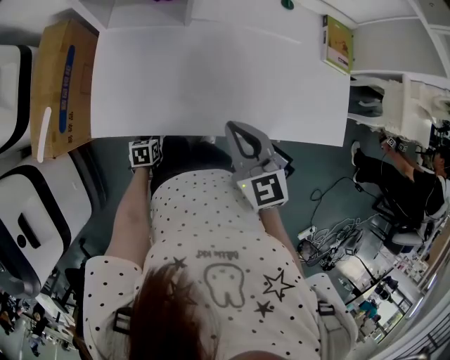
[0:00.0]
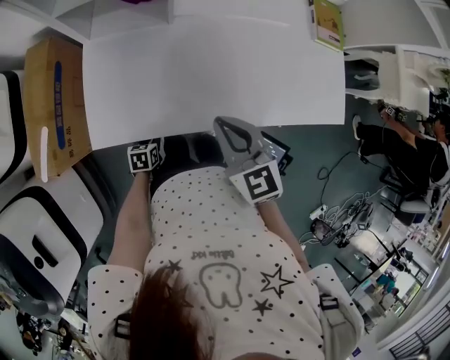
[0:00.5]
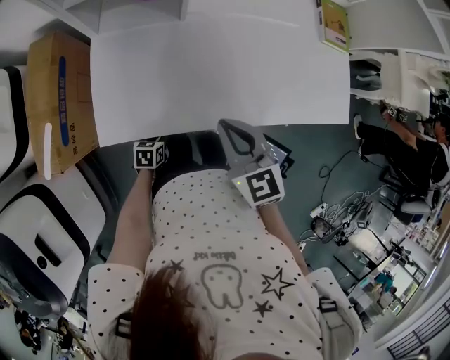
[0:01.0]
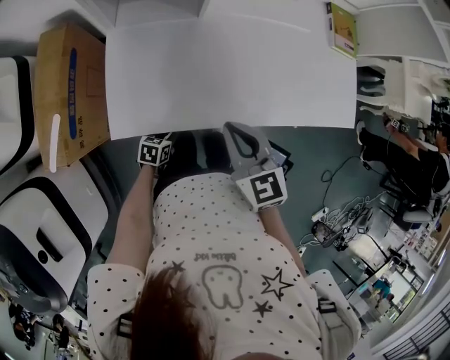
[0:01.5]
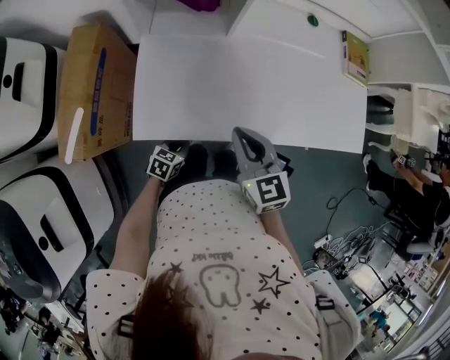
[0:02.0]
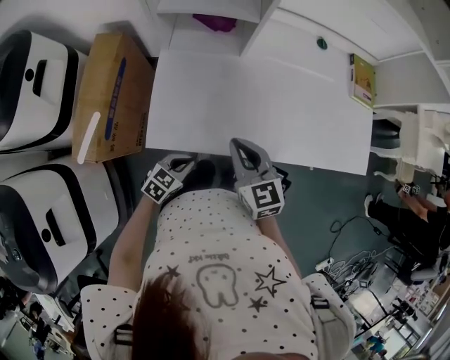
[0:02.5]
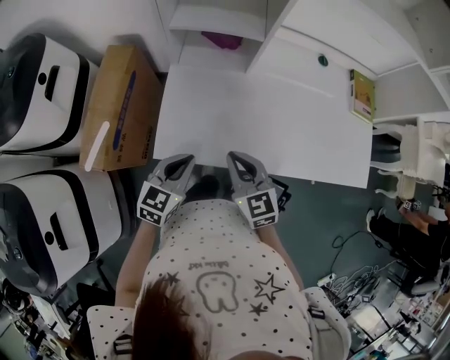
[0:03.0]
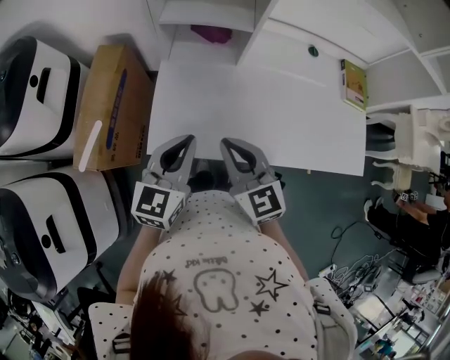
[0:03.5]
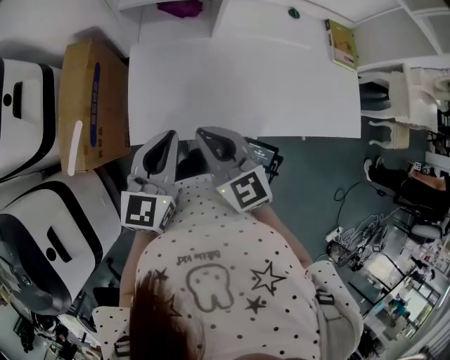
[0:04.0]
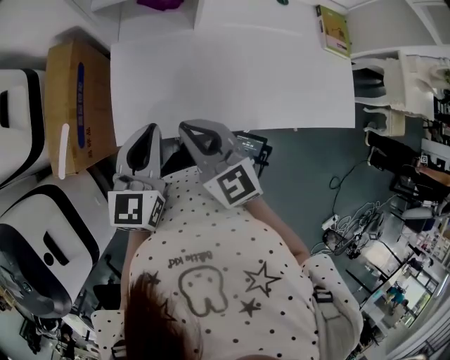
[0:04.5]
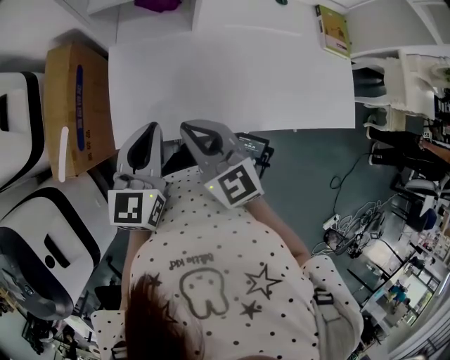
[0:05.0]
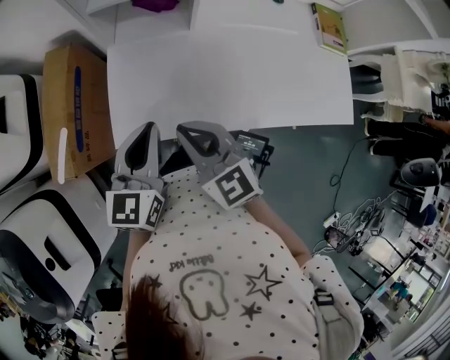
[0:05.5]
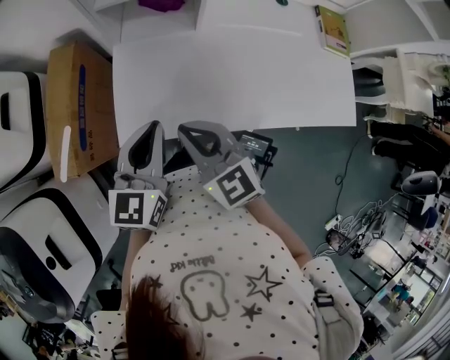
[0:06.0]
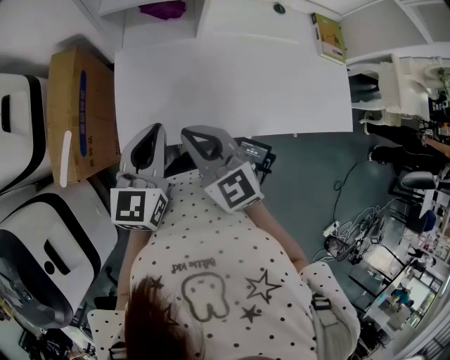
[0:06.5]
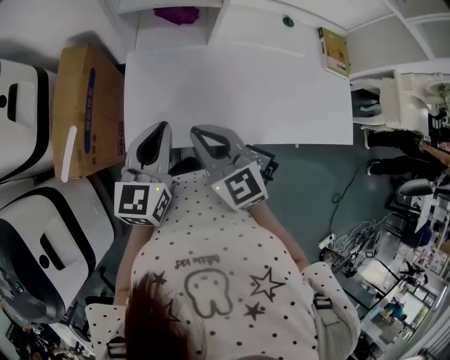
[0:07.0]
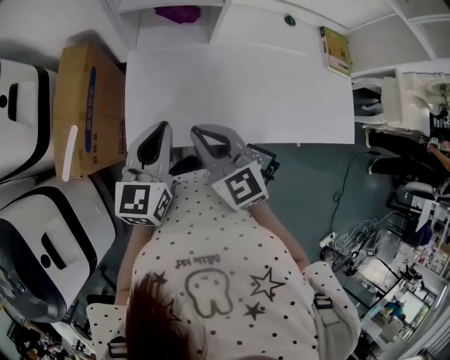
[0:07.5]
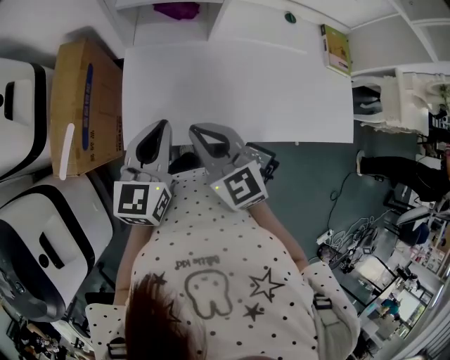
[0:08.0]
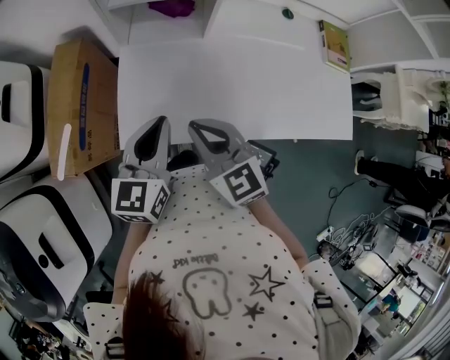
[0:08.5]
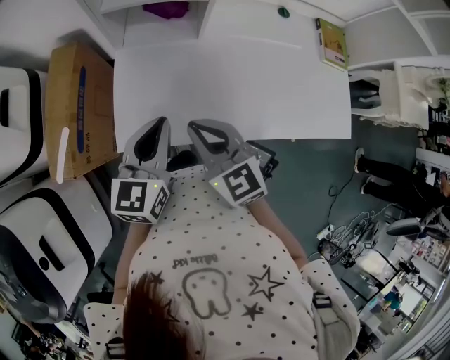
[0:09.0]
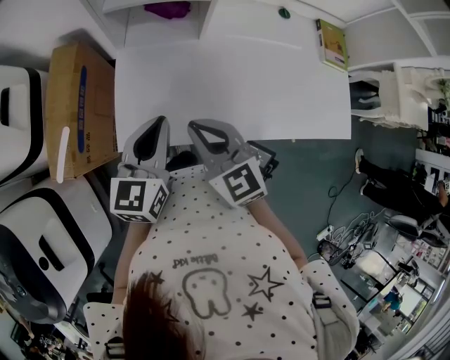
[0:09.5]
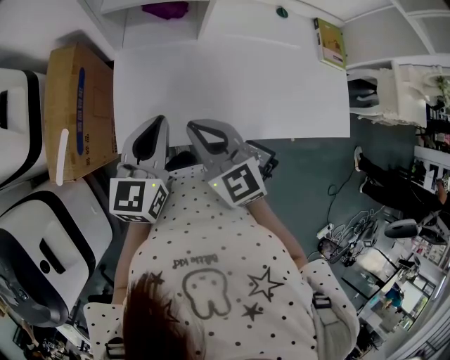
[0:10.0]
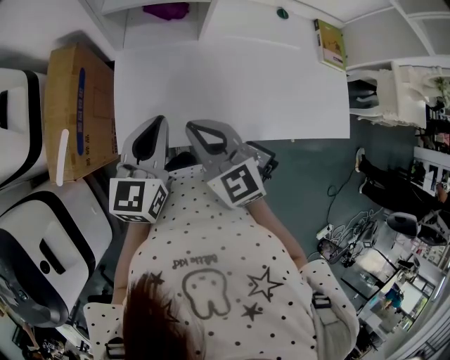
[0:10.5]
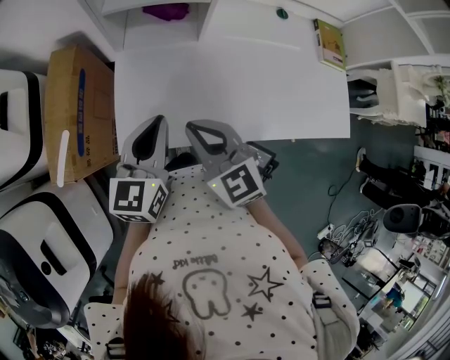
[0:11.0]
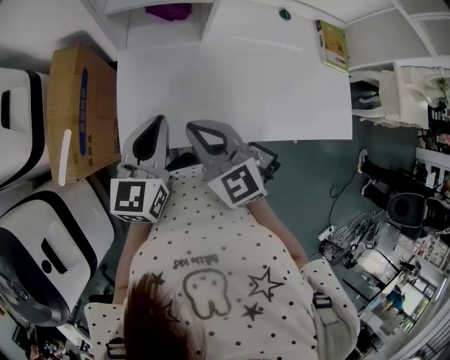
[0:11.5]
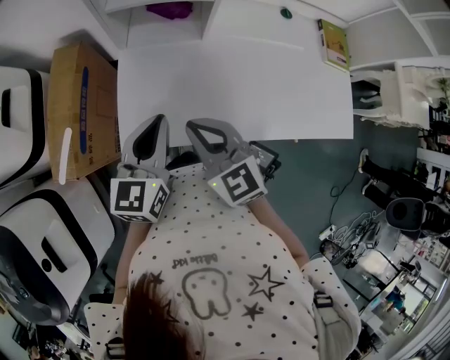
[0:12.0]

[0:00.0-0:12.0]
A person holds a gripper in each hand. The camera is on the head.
0.0 to 2.0 s: The left gripper heads upward, covering roughly 5 cm, and rotates about 30 degrees; the right gripper travels to the left by roughly 10 cm.
2.0 to 4.0 s: The left gripper heads upward, covering roughly 35 cm, and tilts its fingers about 30 degrees upward, while the right gripper is displaced to the left and upward by roughly 10 cm.
4.0 to 10.0 s: There are only small adjustments of the grippers.
10.0 to 12.0 s: Both grippers stay about where they are.

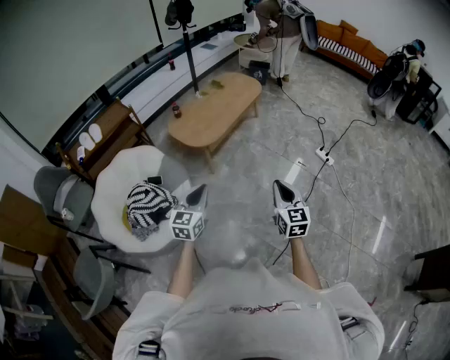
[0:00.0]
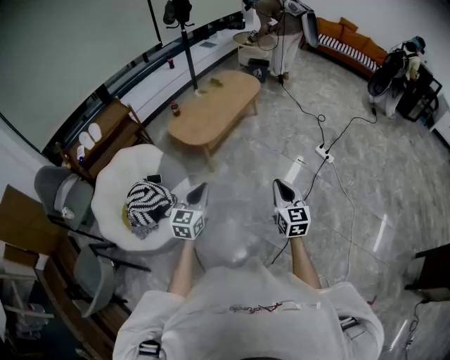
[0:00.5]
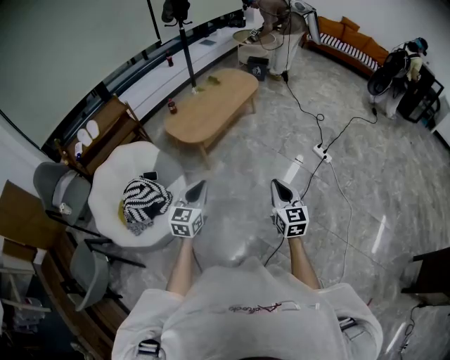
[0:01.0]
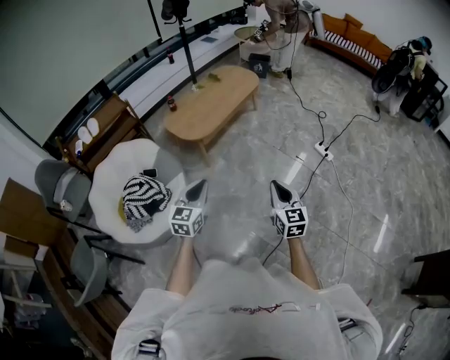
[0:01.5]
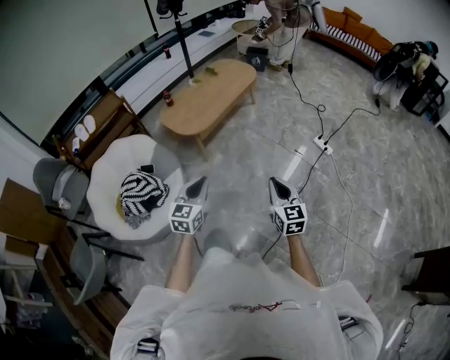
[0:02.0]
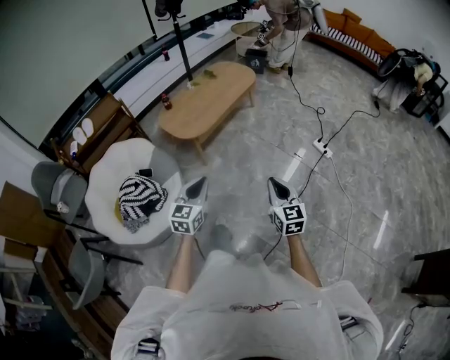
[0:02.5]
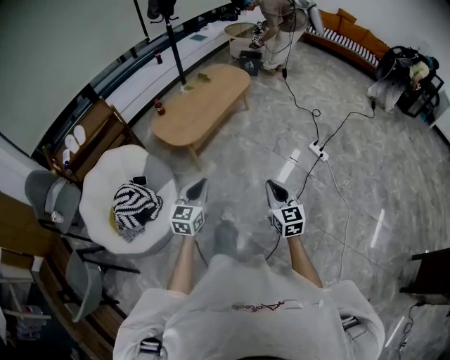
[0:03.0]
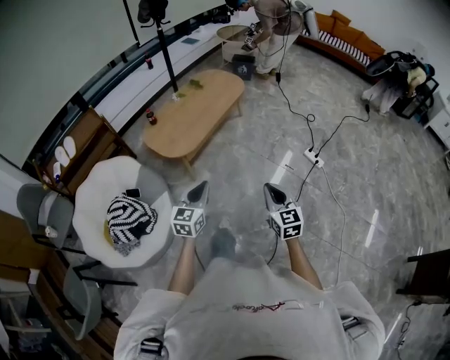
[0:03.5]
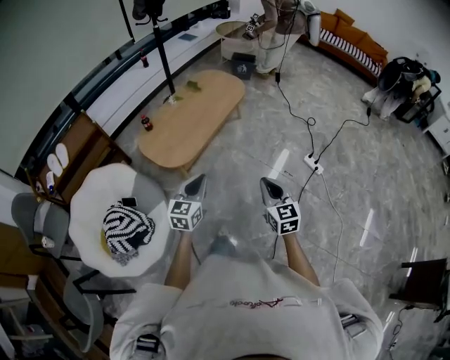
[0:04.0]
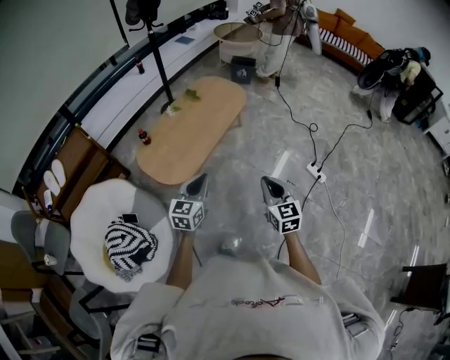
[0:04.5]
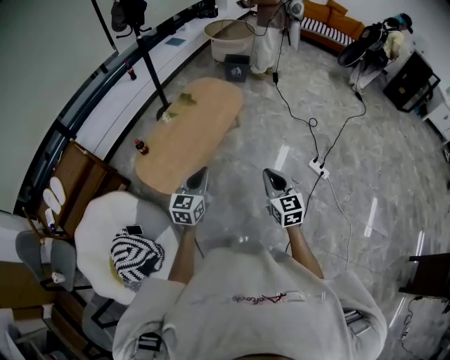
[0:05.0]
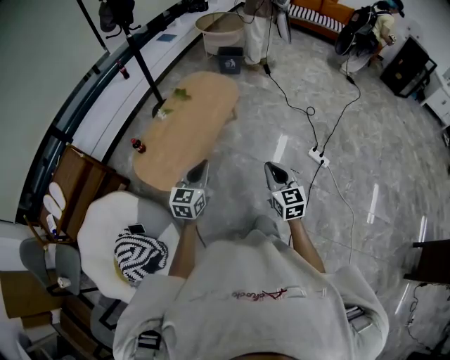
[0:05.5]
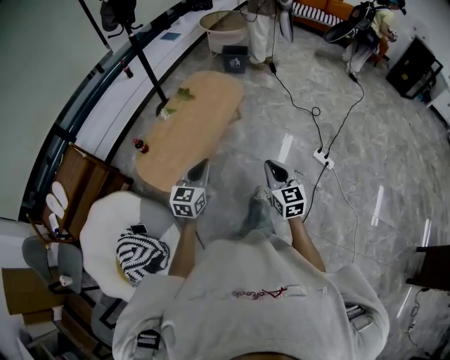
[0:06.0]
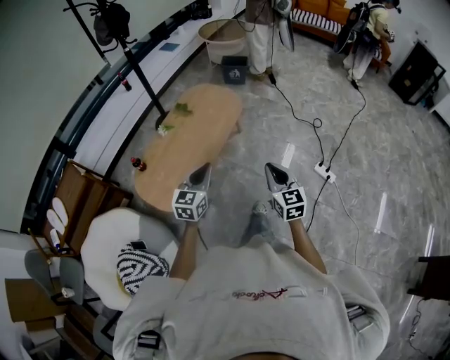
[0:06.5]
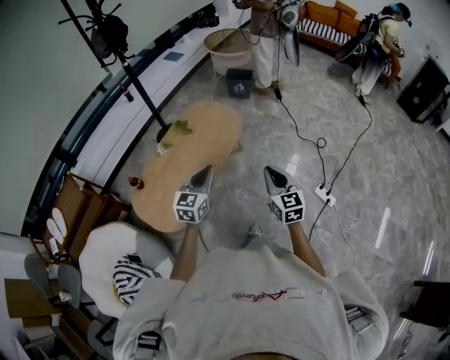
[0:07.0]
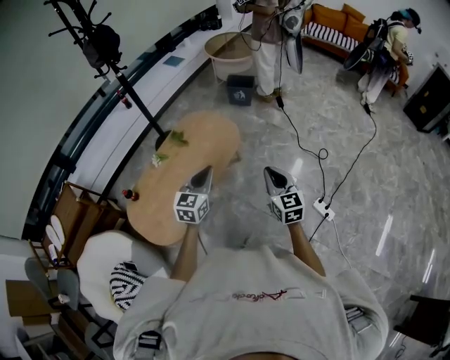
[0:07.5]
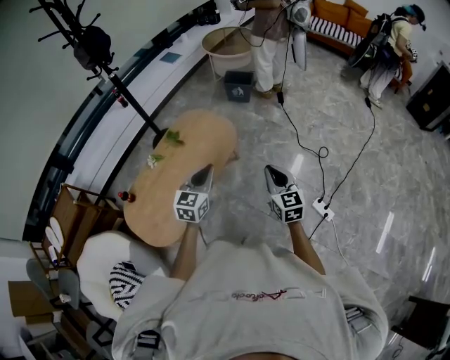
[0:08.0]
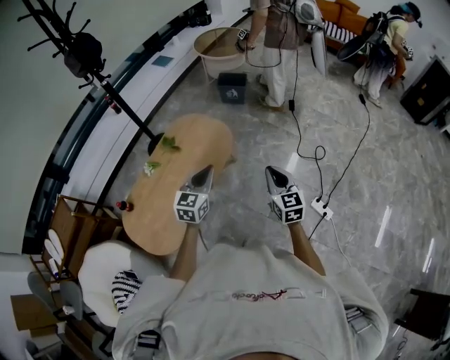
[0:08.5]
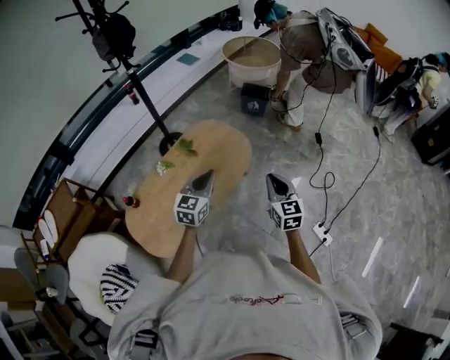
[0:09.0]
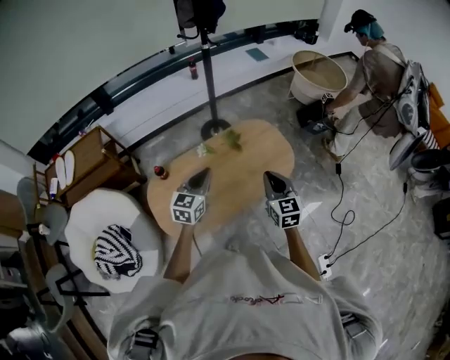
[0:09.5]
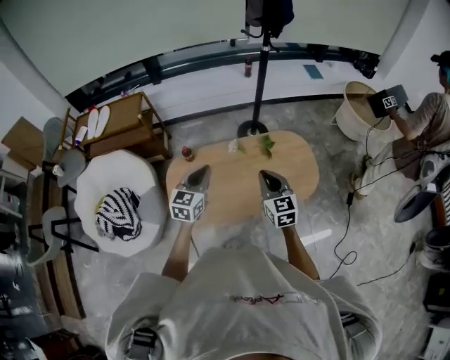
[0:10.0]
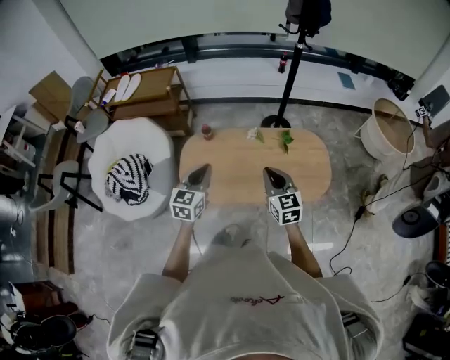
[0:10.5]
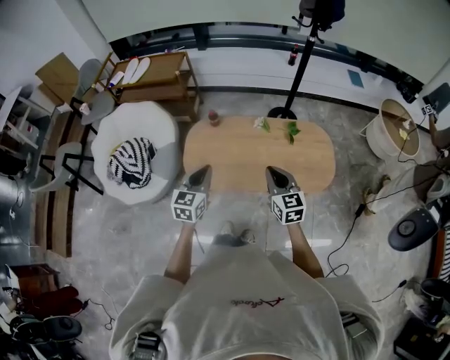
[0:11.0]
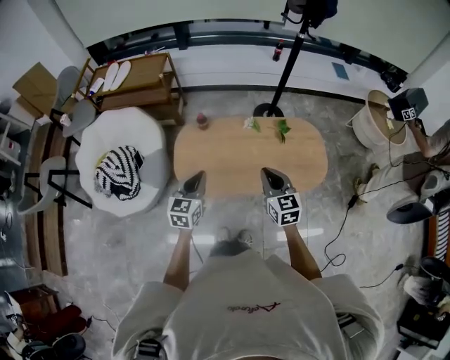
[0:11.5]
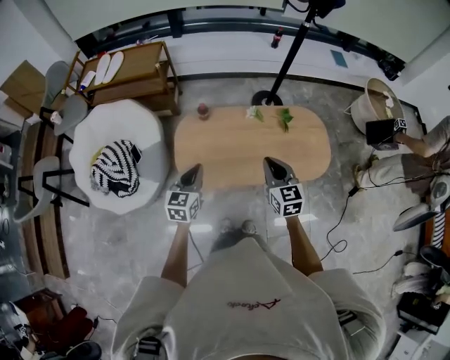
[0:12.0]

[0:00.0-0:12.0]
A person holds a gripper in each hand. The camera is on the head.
0.0 to 2.0 s: The grippers both shift to the right by roughly 10 cm.
2.0 to 4.0 s: The two grippers go approximately 30 cm forward.
4.0 to 6.0 s: The two grippers go roughly 25 cm forward.
6.0 to 8.0 s: Both grippers are carried forward and to the right, approximately 40 cm.
8.0 to 10.0 s: The right gripper moves some 40 cm, and rotates roughly 50 degrees, while the left gripper changes place by some 35 cm, and changes its angle by about 40 degrees.
10.0 to 12.0 s: The left gripper heads to the left, backward and downward, covering approximately 20 cm, while the right gripper goes some 10 cm to the left.

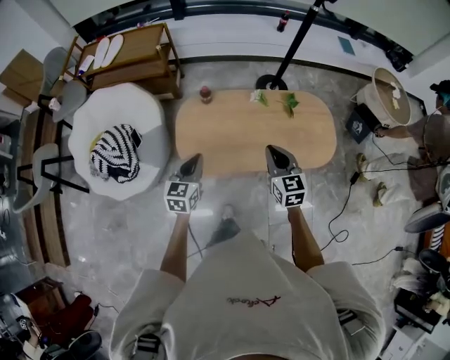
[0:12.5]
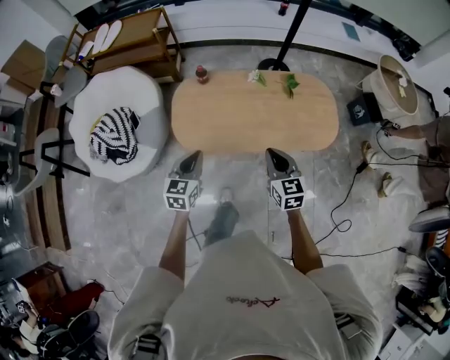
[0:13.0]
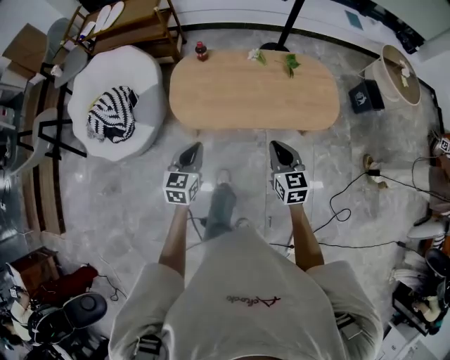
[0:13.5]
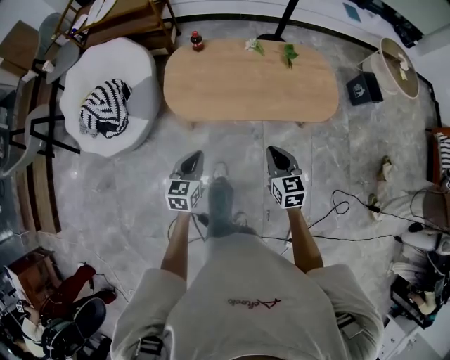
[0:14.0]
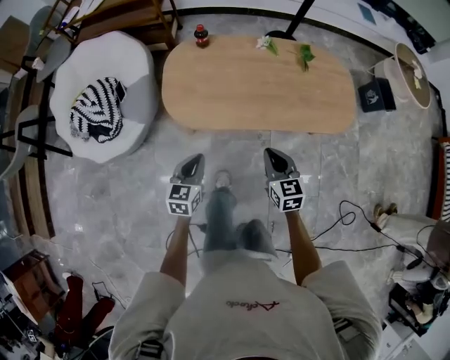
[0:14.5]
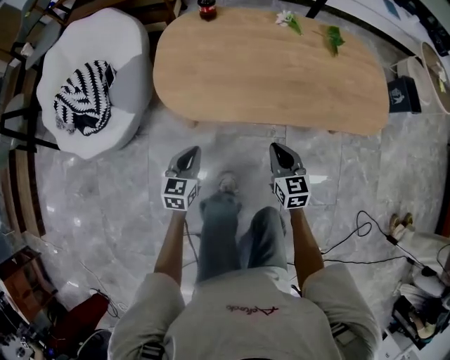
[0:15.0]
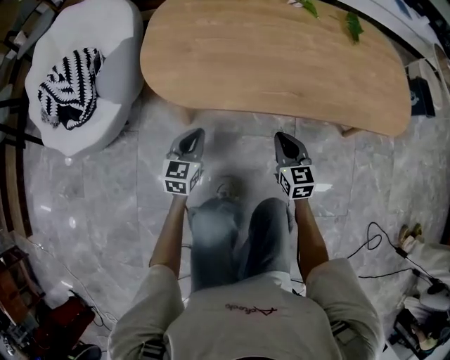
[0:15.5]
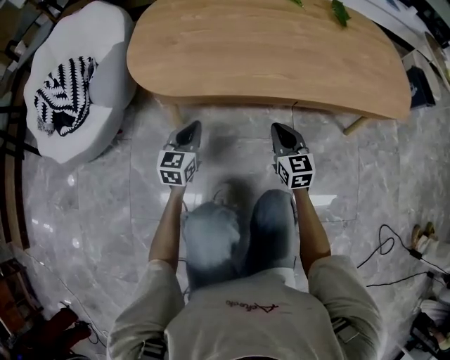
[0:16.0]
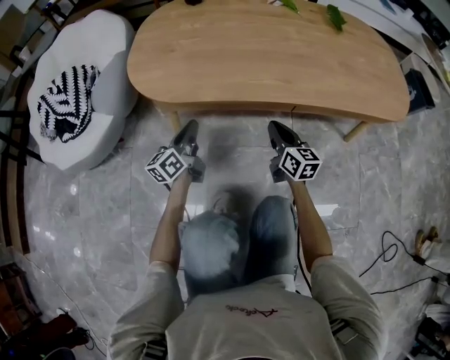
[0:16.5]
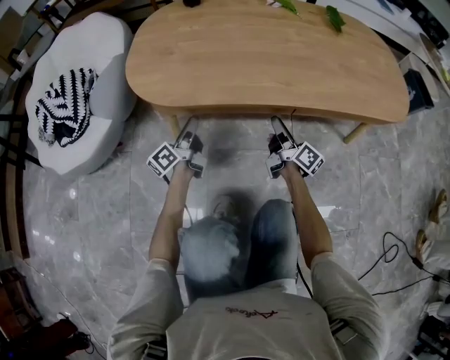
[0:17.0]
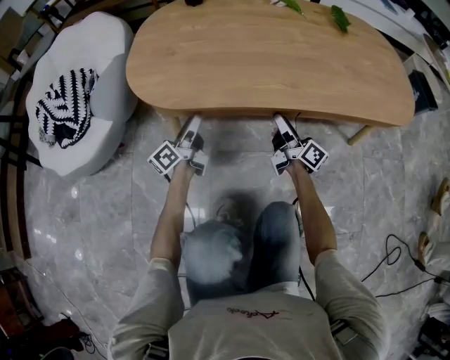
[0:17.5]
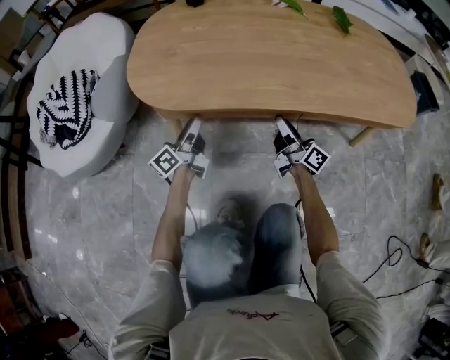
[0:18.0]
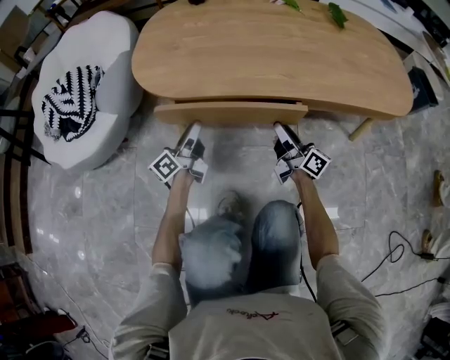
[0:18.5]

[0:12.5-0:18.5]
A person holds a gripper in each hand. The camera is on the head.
12.5 to 14.5 s: Both grippers travel together downward and backward, roughly 30 cm.
14.5 to 16.5 s: Both grippers move downward, some 40 cm. The right gripper swivels roughly 30 degrees; the left gripper swivels approximately 40 degrees.
16.5 to 18.5 s: The left gripper swivels about 20 degrees, and opens up. Meanwhile the right gripper rotates some 40 degrees, and opens up.
